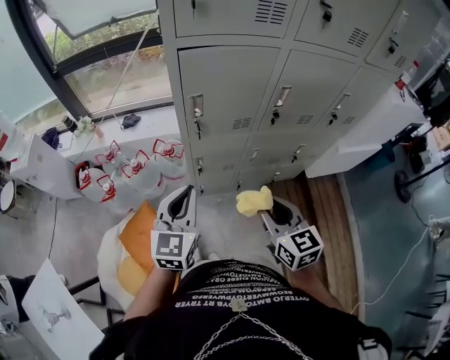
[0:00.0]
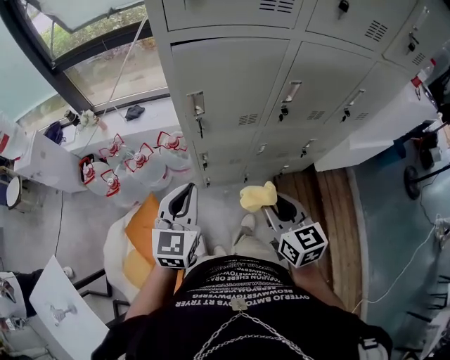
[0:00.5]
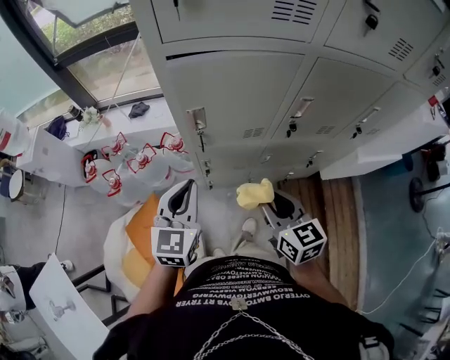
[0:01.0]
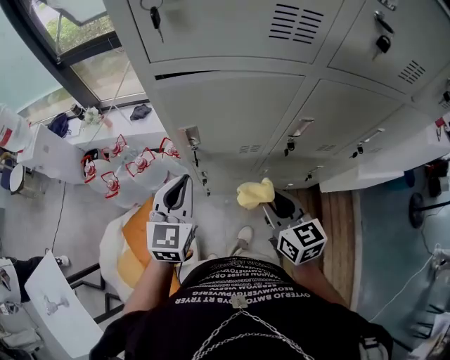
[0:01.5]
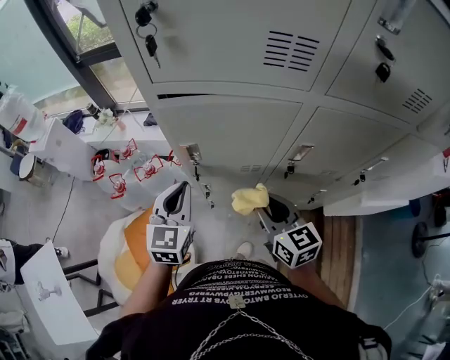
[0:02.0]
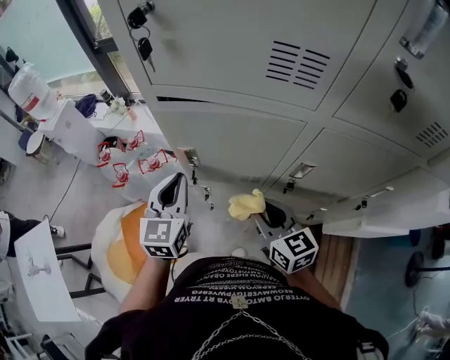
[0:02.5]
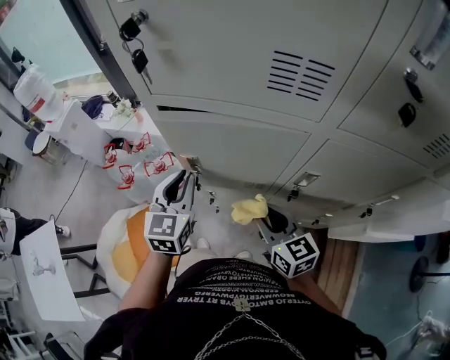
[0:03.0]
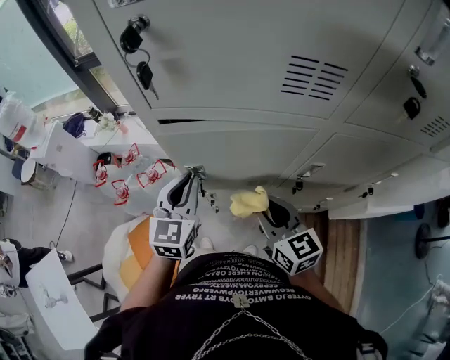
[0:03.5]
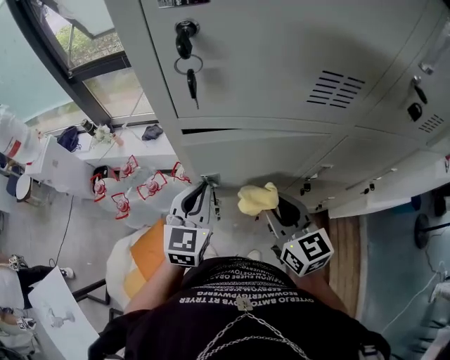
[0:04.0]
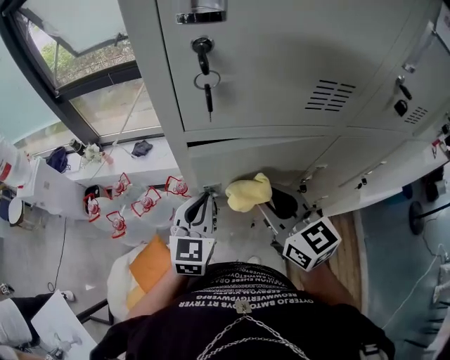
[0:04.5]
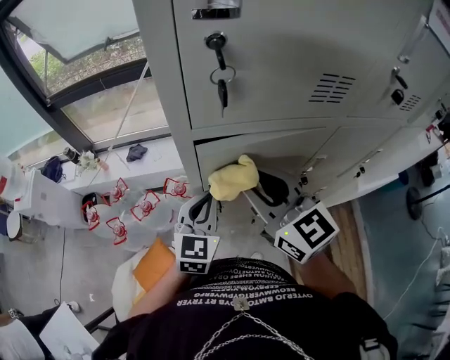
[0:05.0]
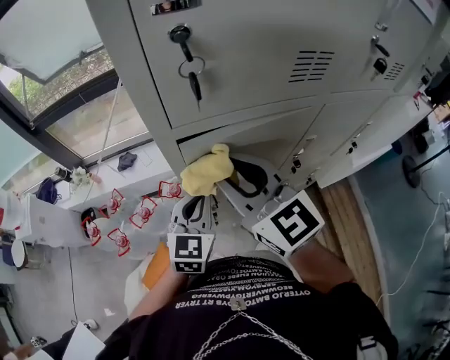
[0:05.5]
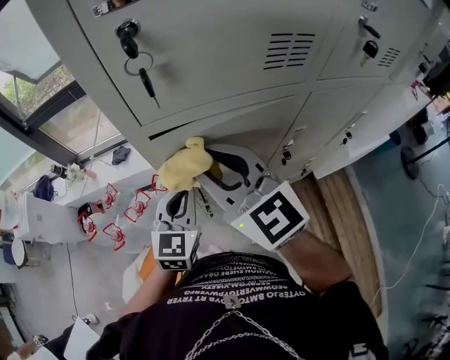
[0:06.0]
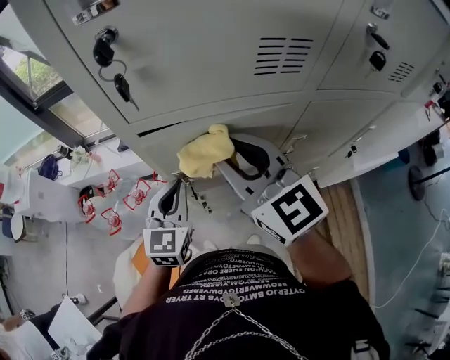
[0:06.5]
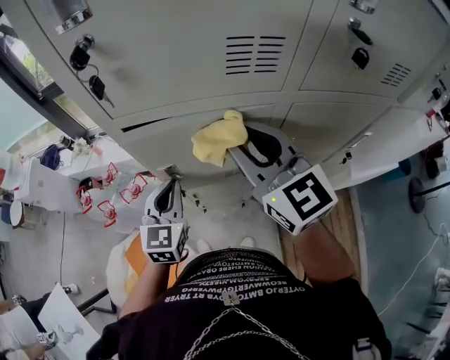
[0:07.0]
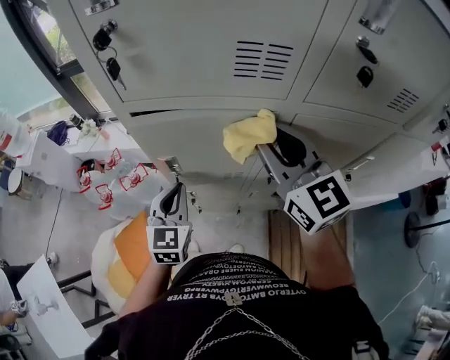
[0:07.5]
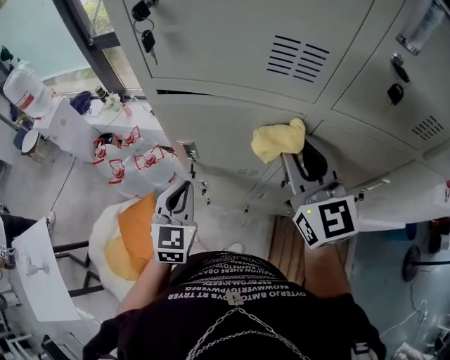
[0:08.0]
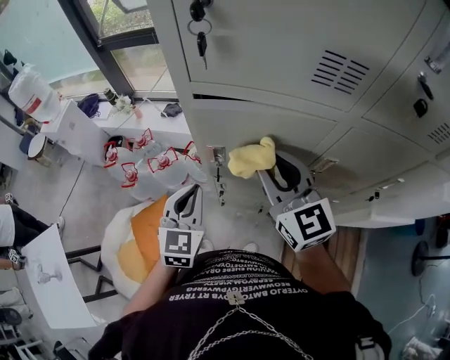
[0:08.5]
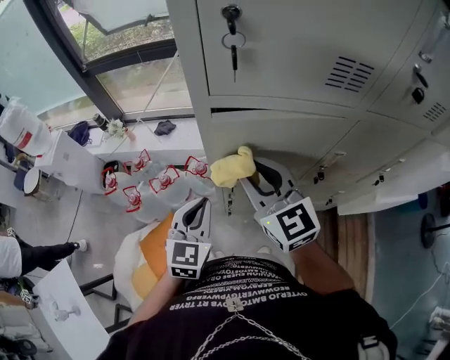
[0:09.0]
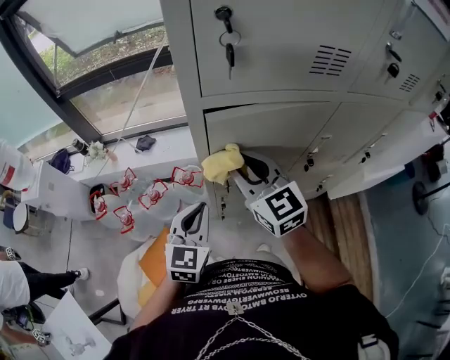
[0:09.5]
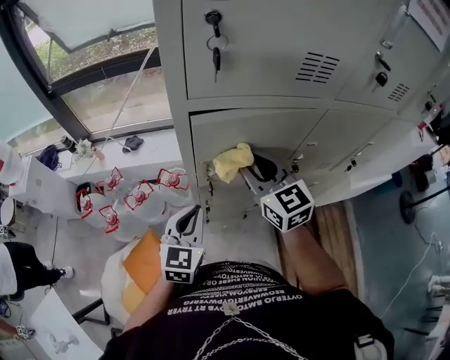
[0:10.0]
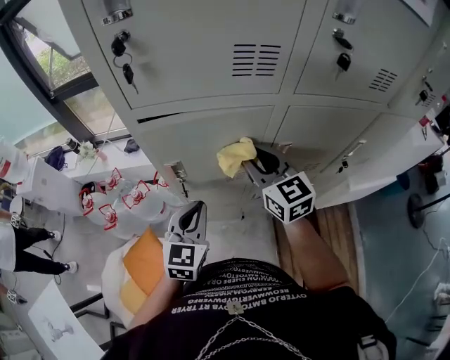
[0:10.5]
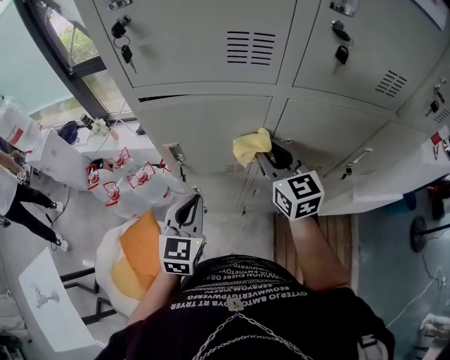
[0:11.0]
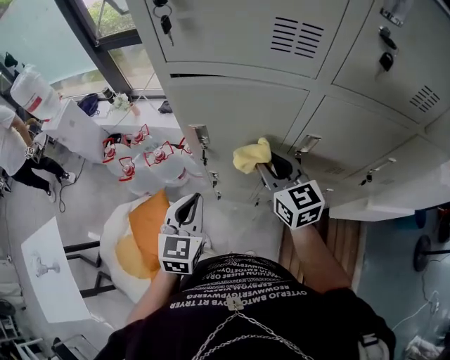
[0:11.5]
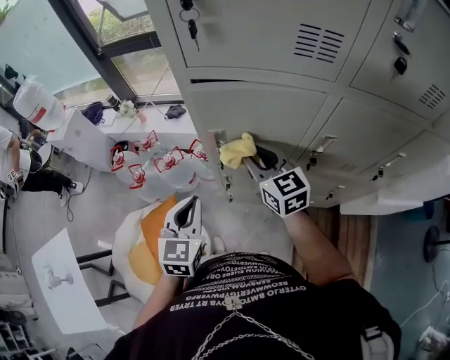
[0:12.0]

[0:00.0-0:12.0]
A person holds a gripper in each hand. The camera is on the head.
0:00.0 to 0:02.0: The two grippers go about 20 cm forward.
0:02.0 to 0:04.0: The right gripper is displaced forward and upward by roughly 10 cm. The left gripper heads forward, covering approximately 5 cm.
0:04.0 to 0:06.0: The right gripper moves upward and to the left, roughly 15 cm.
0:06.0 to 0:08.0: The left gripper moves backward, about 5 cm, and rotates some 30 degrees. Meanwhile the right gripper heads to the right, covering roughly 20 cm.
0:08.0 to 0:10.0: The left gripper heads to the left, covering roughly 5 cm, and rotates roughly 20 degrees, while the right gripper is displaced to the left and downward by approximately 15 cm.
0:10.0 to 0:12.0: The right gripper moves downward, roughly 5 cm, and goes to the right and returns, approximately 15 cm each way; the left gripper is displaced backward by approximately 5 cm, goes to the right and returns, about 10 cm each way, and swivels approximately 20 degrees.

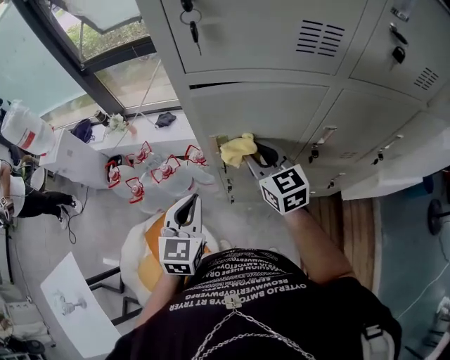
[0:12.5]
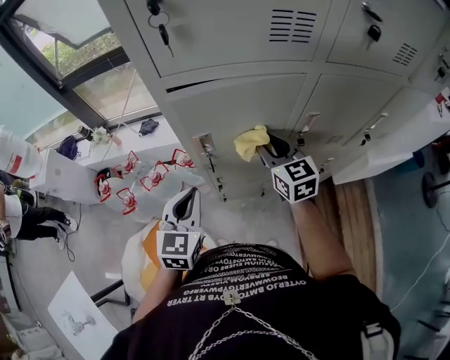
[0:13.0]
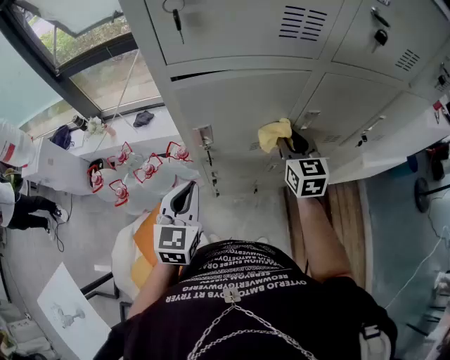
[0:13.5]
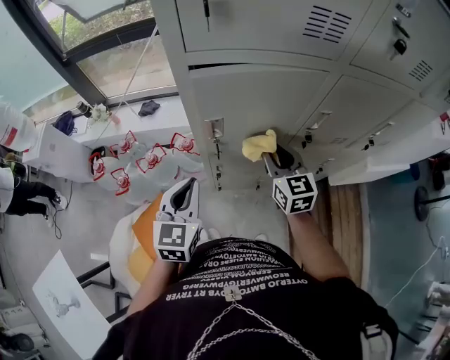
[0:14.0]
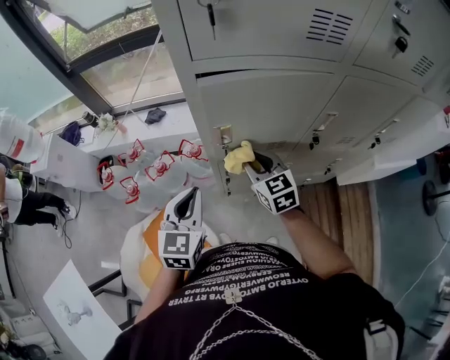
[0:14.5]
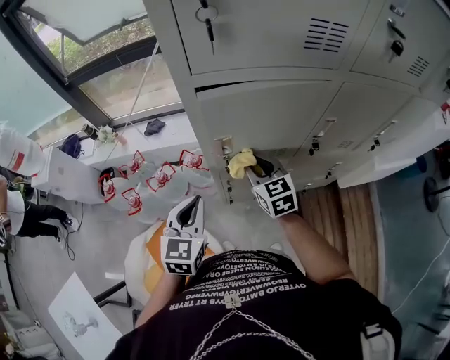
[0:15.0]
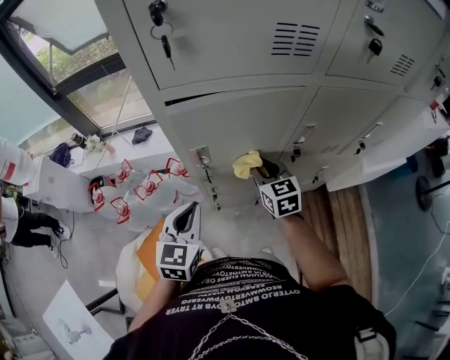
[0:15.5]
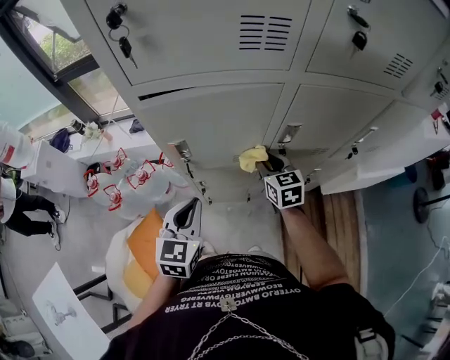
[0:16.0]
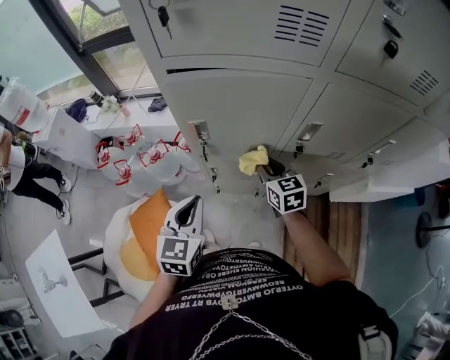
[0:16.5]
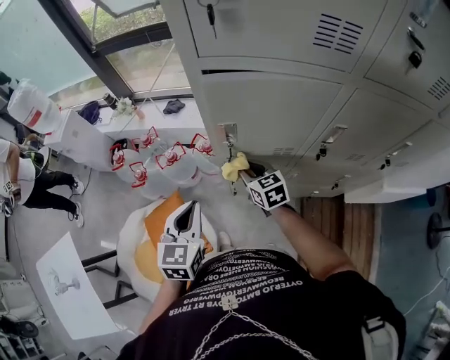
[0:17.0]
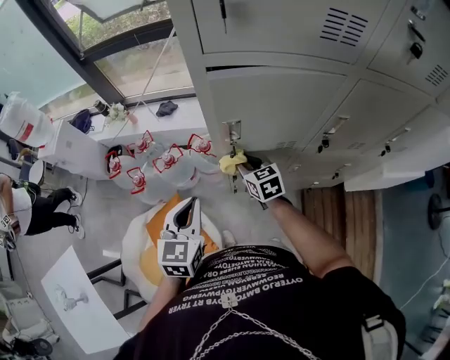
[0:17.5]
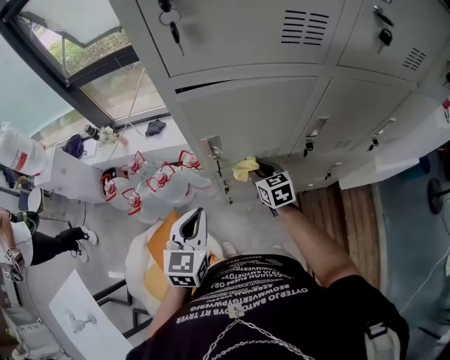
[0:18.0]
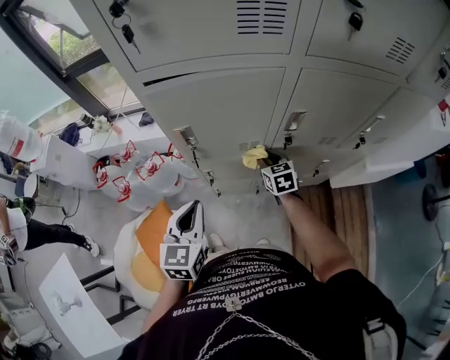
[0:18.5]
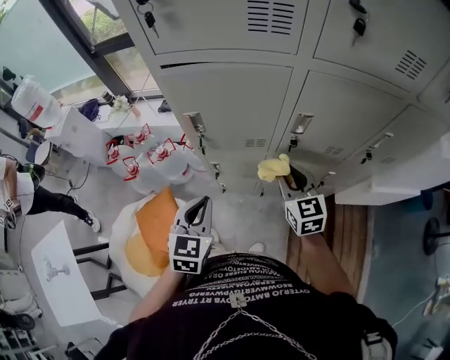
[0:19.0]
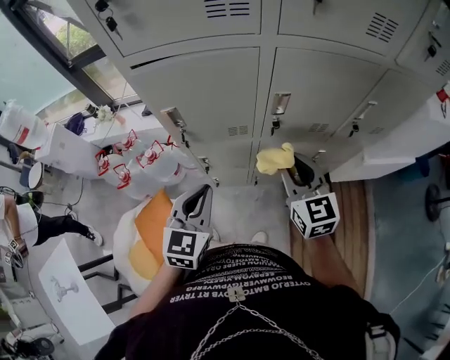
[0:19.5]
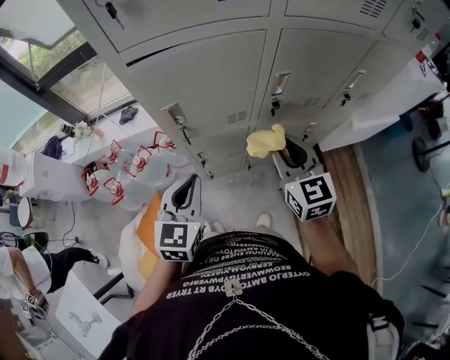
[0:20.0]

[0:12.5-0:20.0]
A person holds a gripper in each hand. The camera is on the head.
0:12.5 to 0:14.5: The right gripper shifts about 10 cm downward, and goes to the right and returns, approximately 15 cm each way.
0:14.5 to 0:16.5: The grippers both shift to the right by some 10 cm.
0:16.5 to 0:18.0: The left gripper moves to the left, roughly 5 cm. Meanwhile the right gripper travels downward and to the left by about 10 cm.
0:18.0 to 0:20.0: The right gripper moves upward, backward and to the right, roughly 25 cm, and turns by some 20 degrees. Meanwhile the left gripper heads to the right, covering approximately 5 cm.

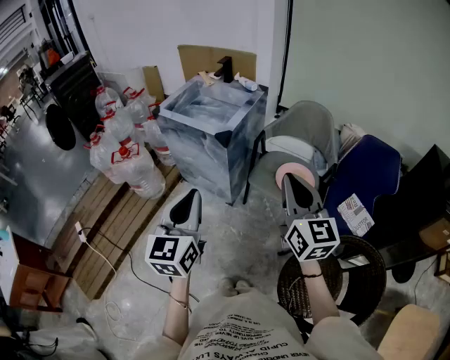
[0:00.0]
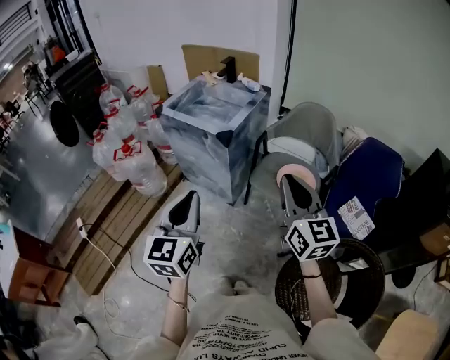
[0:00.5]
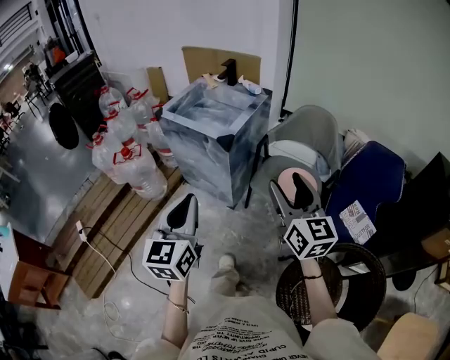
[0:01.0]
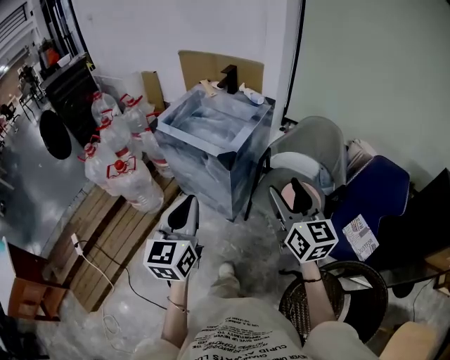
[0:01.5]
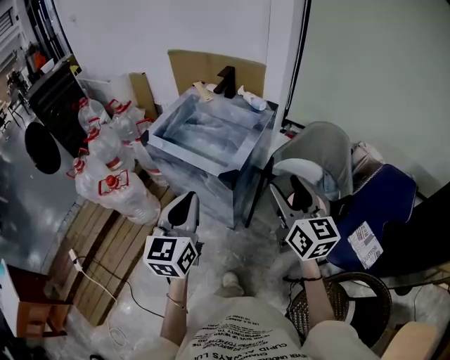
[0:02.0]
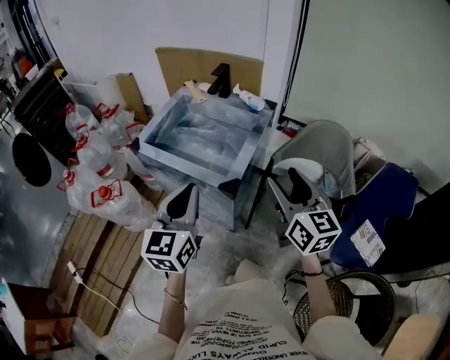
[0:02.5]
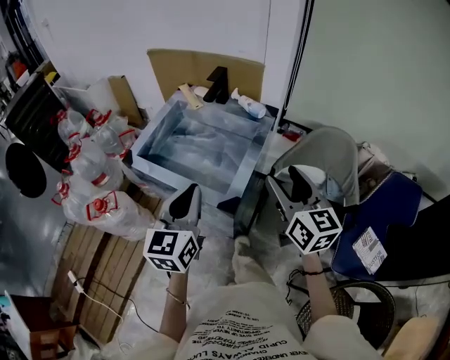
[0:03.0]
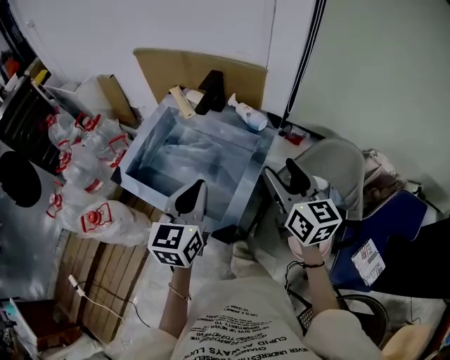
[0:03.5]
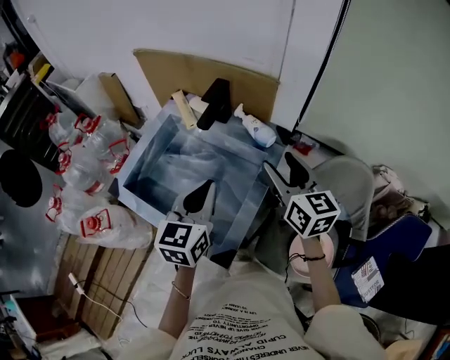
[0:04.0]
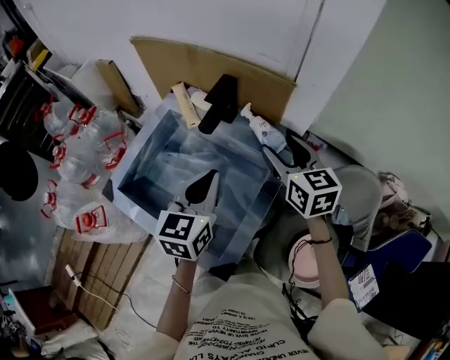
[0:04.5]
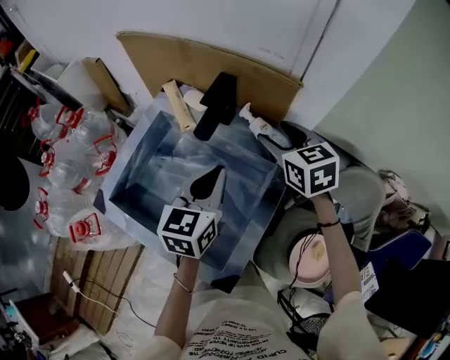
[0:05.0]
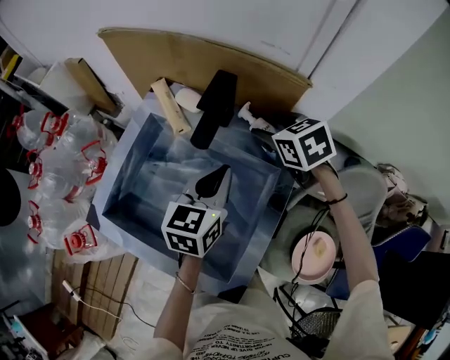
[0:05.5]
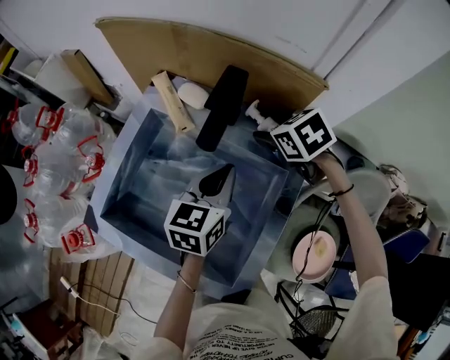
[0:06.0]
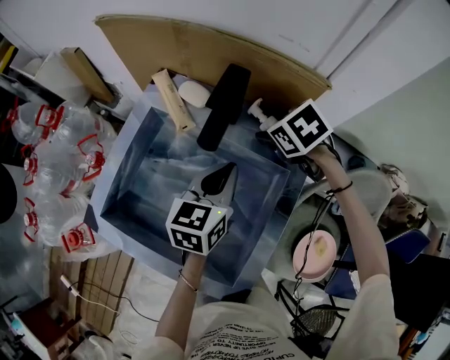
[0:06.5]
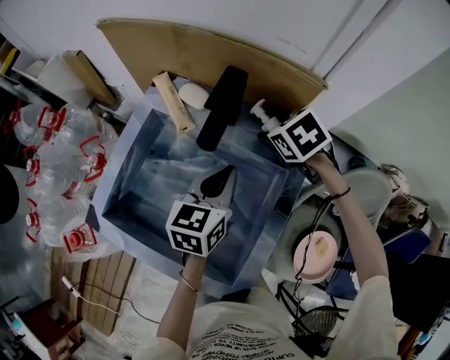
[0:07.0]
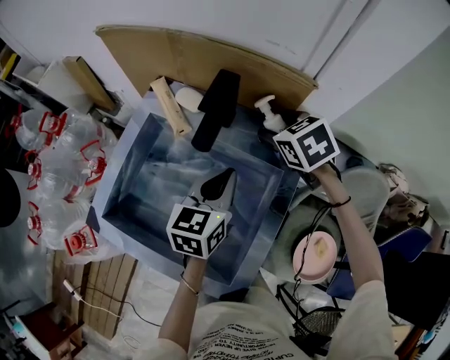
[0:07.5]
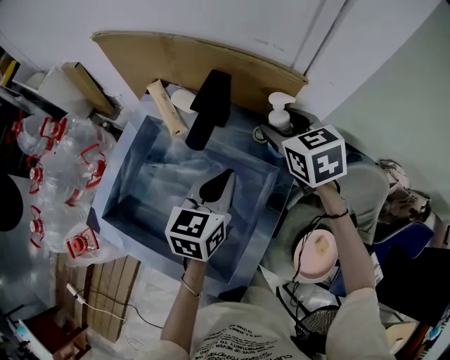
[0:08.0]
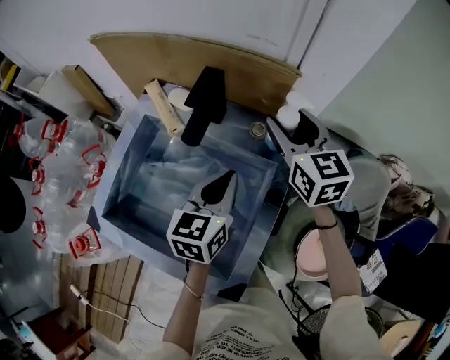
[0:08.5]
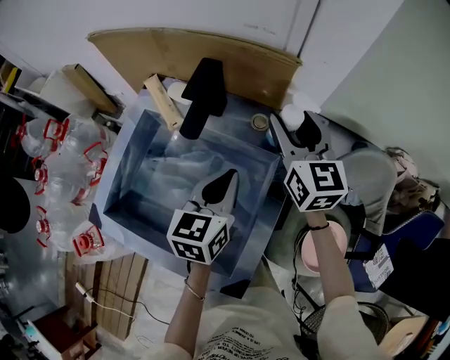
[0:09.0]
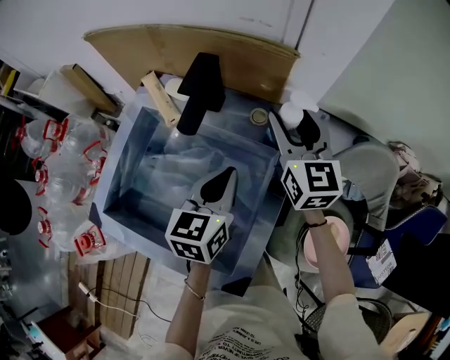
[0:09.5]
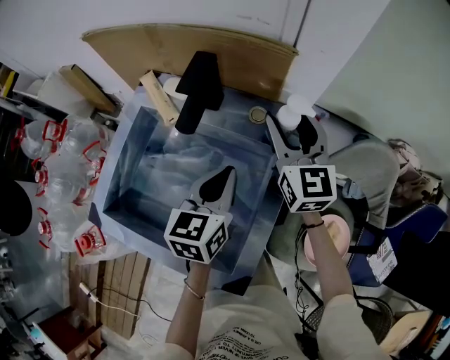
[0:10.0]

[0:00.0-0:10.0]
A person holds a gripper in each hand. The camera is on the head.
0:00.0 to 0:02.0: Both grippers travel together forward, approximately 25 cm. The right gripper opens.
0:02.0 to 0:04.0: The grippers both shift forward by some 35 cm.
0:04.0 to 0:06.0: The grippers both shift forward and downward by approximately 20 cm. The right gripper points its fingers some 50 degrees further downward.
0:06.0 to 0:08.0: The right gripper moves upward, some 10 cm, and changes its angle by approximately 20 degrees.
0:08.0 to 0:10.0: The right gripper shifts by about 5 cm, and tips its fingers upward by about 30 degrees.
